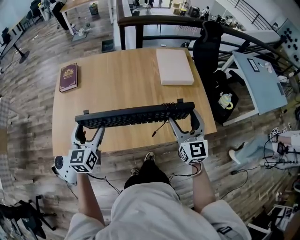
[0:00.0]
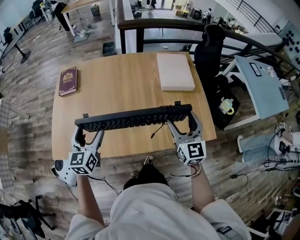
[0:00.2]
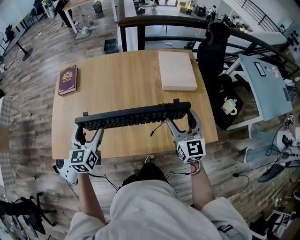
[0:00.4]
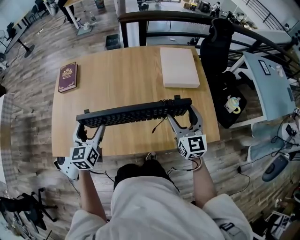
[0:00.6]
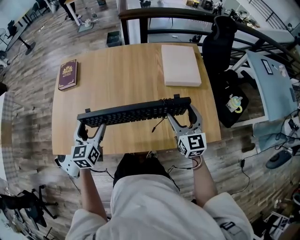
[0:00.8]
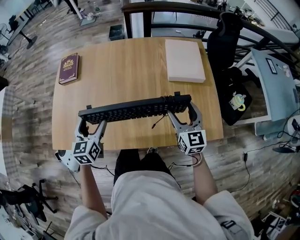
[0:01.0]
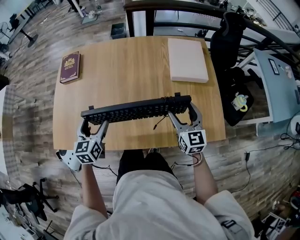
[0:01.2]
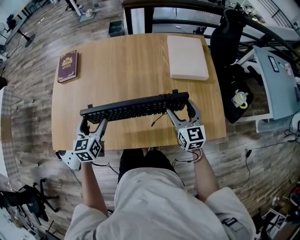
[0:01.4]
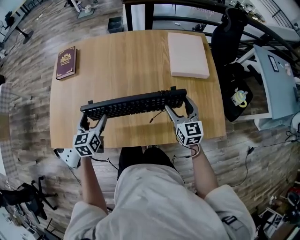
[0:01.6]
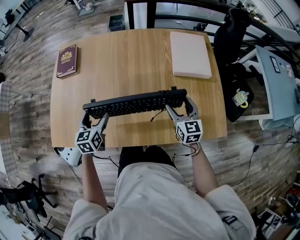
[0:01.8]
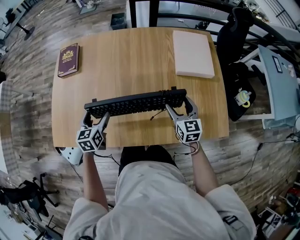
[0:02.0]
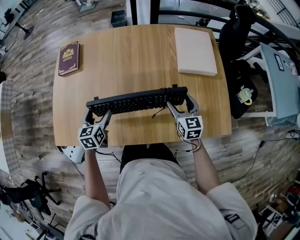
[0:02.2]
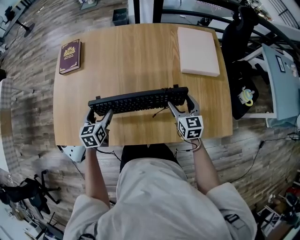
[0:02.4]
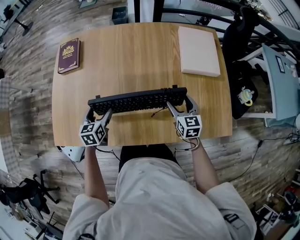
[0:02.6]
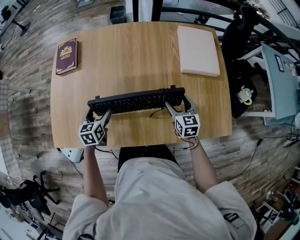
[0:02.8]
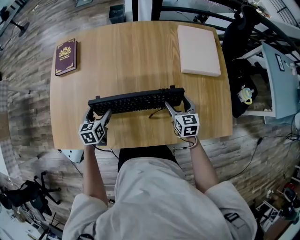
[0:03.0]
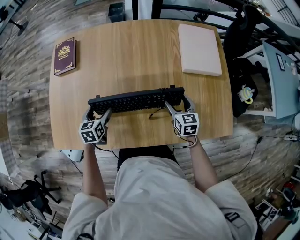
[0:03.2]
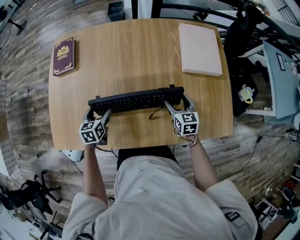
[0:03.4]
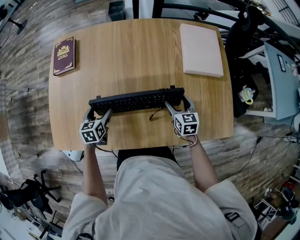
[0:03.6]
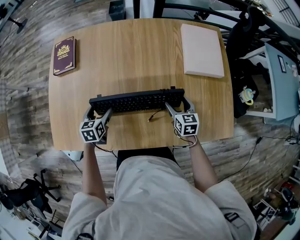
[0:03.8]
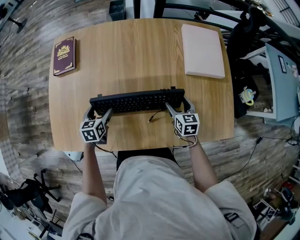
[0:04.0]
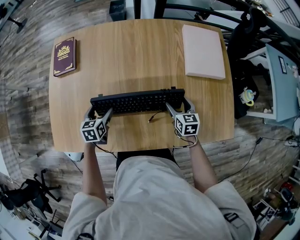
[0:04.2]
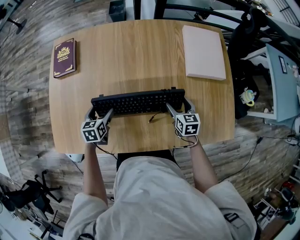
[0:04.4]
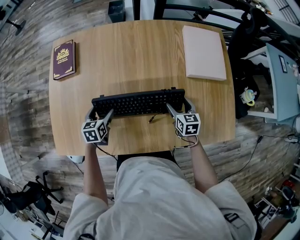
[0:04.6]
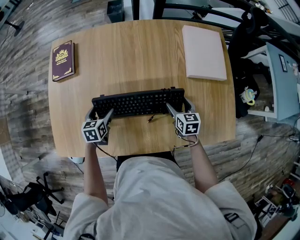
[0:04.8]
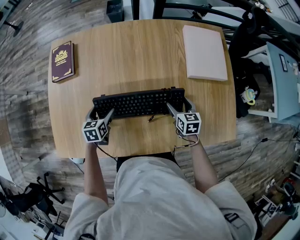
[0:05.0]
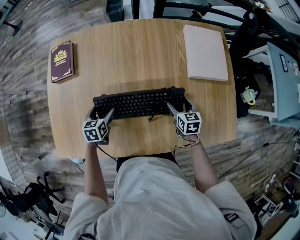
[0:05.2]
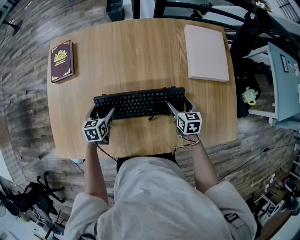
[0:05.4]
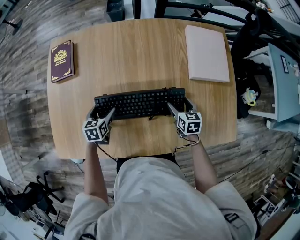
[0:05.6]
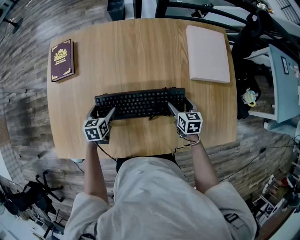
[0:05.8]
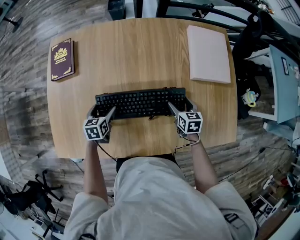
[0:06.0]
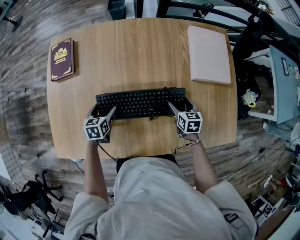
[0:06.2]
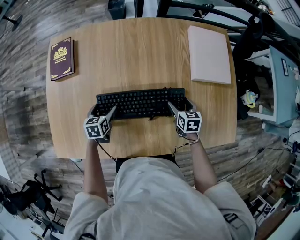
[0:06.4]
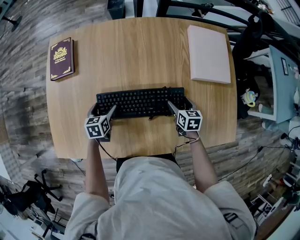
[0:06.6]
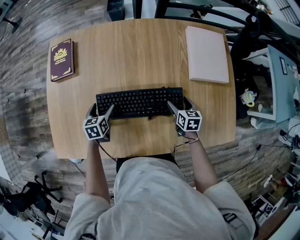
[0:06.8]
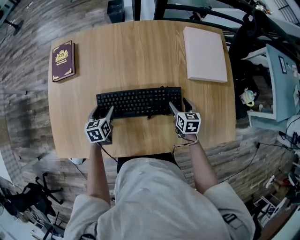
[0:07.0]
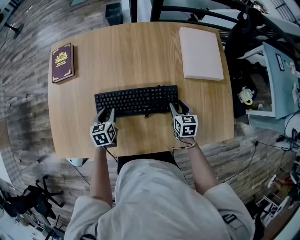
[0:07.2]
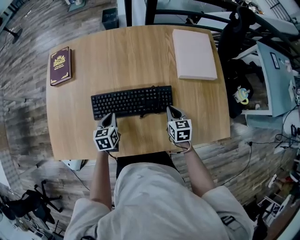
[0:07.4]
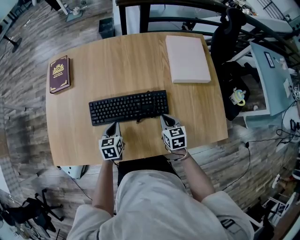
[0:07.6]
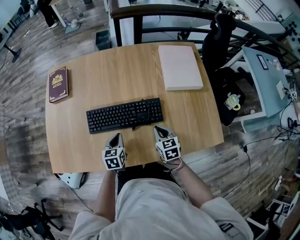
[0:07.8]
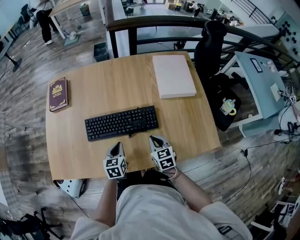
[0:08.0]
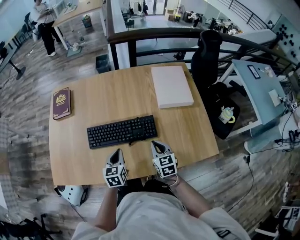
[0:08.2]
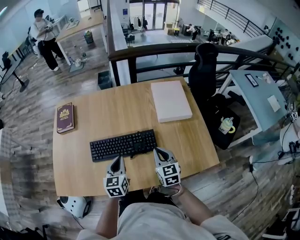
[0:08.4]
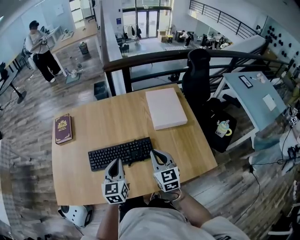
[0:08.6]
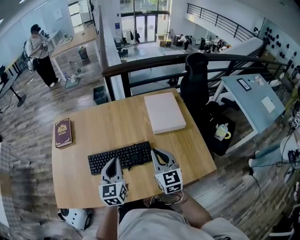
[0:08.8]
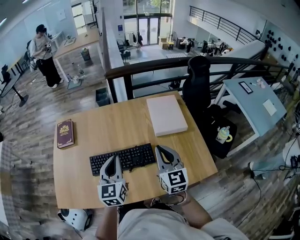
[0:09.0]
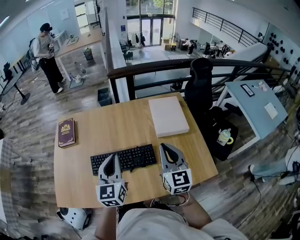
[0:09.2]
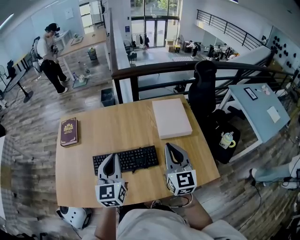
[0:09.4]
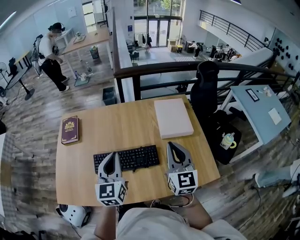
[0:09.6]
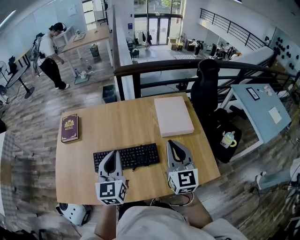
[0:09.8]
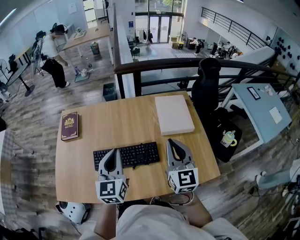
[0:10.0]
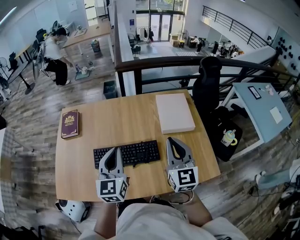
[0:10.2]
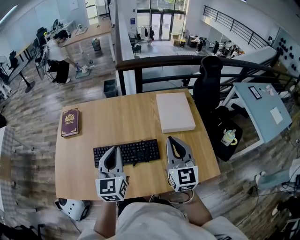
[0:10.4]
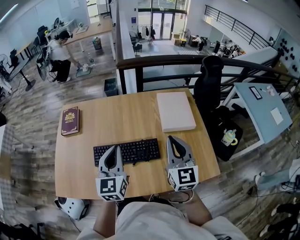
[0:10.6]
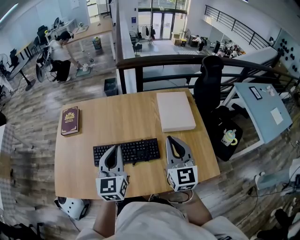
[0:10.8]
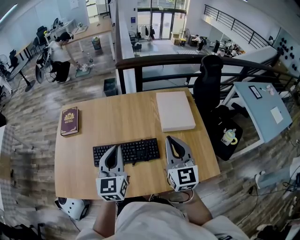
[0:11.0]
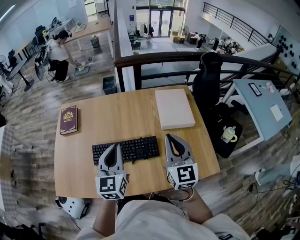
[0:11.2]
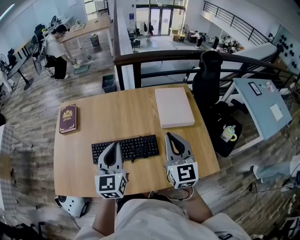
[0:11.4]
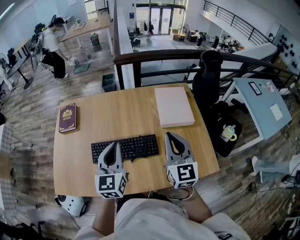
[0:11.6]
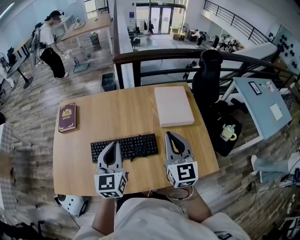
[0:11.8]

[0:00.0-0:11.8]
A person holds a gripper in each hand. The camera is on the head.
0:00.0 to 0:01.4: The two grippers go about 15 cm downward and forward.
0:01.4 to 0:03.0: The two grippers go roughly 10 cm downward.
0:03.0 to 0:04.4: The grippers stay close to where they were, moving slightly.
0:04.4 to 0:06.0: The grippers stay close to where they were, moving slightly.
0:06.0 to 0:07.4: The right gripper shifts by some 5 cm, and closes up; the left gripper is displaced to the right by approximately 5 cm, and closes up.
0:07.4 to 0:08.8: The left gripper goes some 25 cm upward and to the right, and tilts its fingers some 30 degrees upward. Meanwhile the right gripper travels upward by about 25 cm, and points its fingers approximately 30 degrees further upward.
0:08.8 to 0:10.4: Both grippers move upward, roughly 10 cm.
0:10.4 to 0:11.8: Neither gripper changes place.

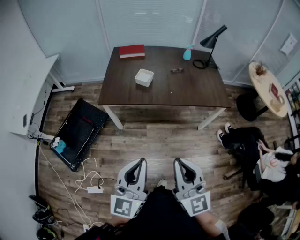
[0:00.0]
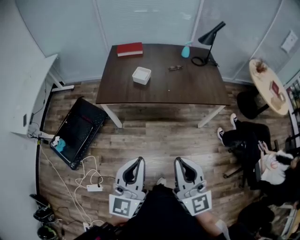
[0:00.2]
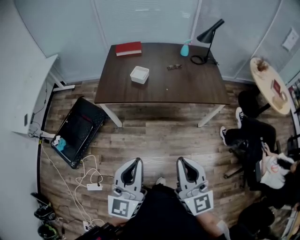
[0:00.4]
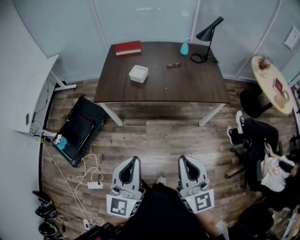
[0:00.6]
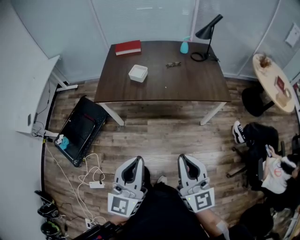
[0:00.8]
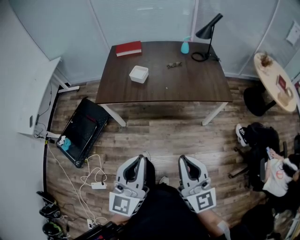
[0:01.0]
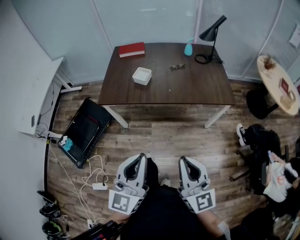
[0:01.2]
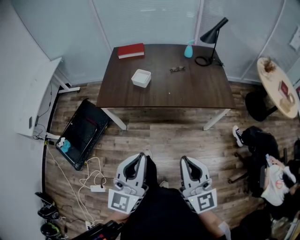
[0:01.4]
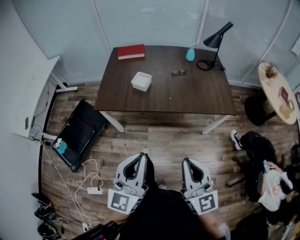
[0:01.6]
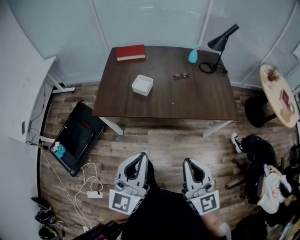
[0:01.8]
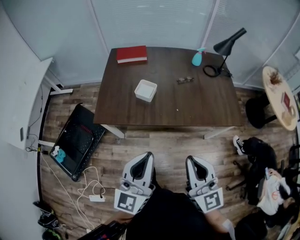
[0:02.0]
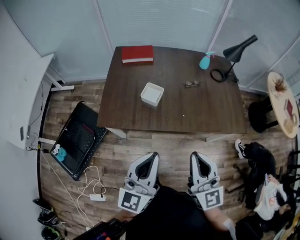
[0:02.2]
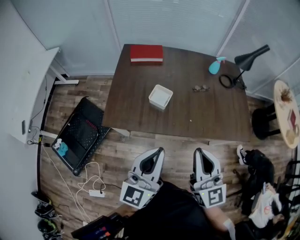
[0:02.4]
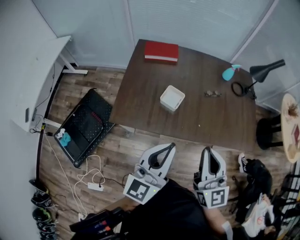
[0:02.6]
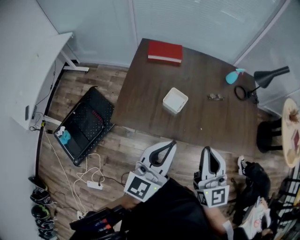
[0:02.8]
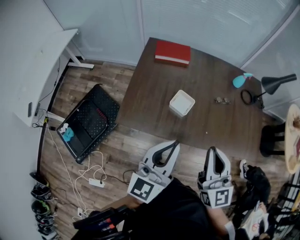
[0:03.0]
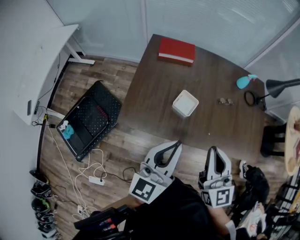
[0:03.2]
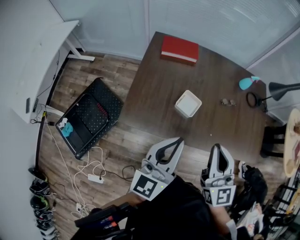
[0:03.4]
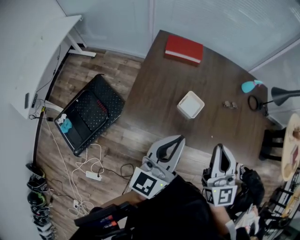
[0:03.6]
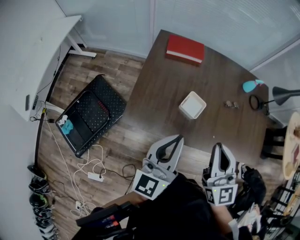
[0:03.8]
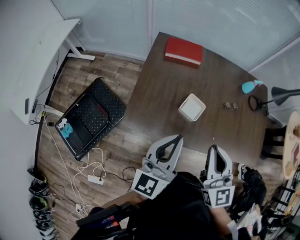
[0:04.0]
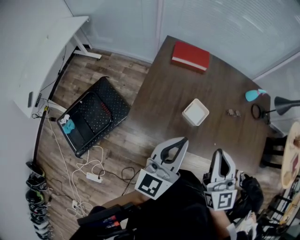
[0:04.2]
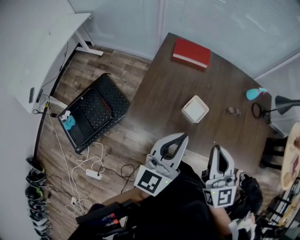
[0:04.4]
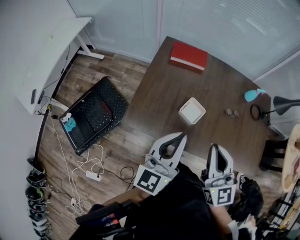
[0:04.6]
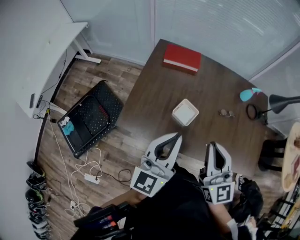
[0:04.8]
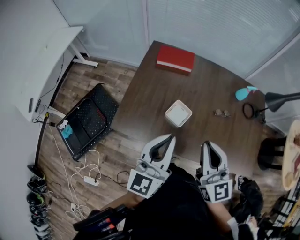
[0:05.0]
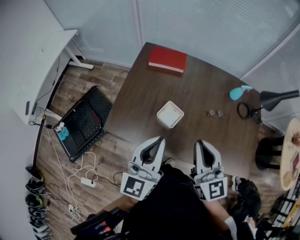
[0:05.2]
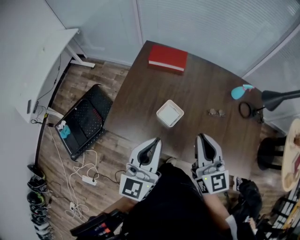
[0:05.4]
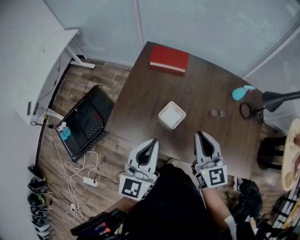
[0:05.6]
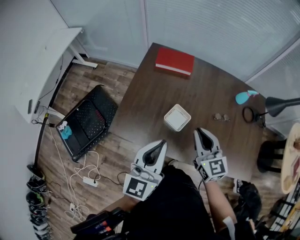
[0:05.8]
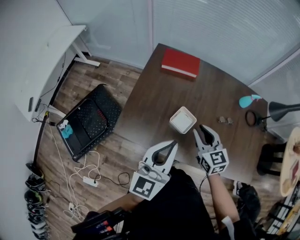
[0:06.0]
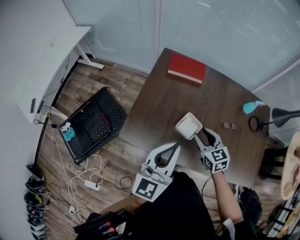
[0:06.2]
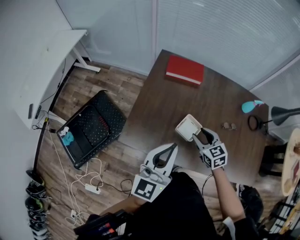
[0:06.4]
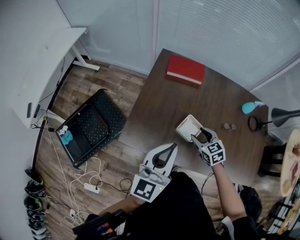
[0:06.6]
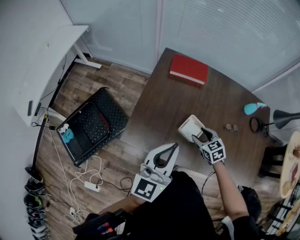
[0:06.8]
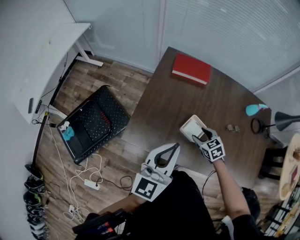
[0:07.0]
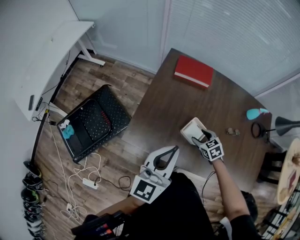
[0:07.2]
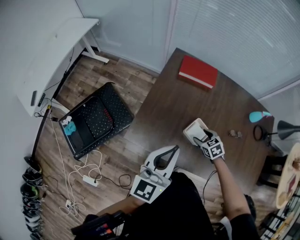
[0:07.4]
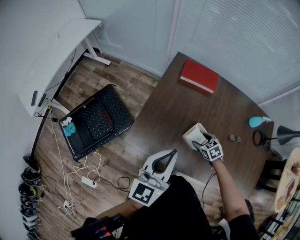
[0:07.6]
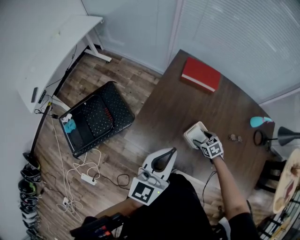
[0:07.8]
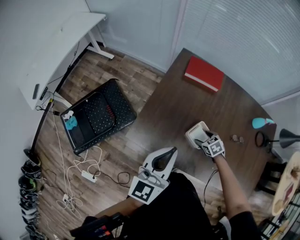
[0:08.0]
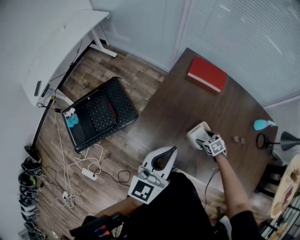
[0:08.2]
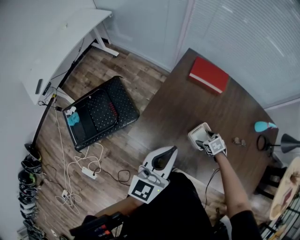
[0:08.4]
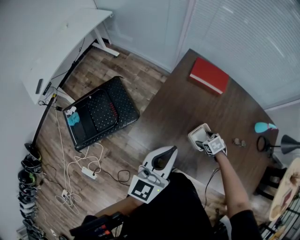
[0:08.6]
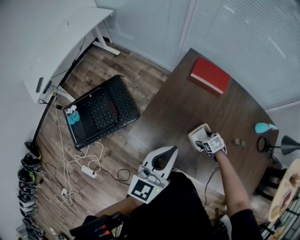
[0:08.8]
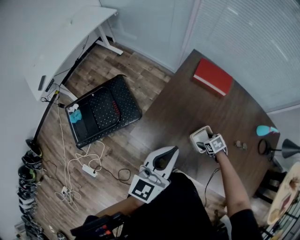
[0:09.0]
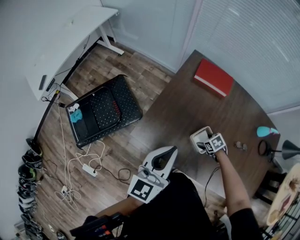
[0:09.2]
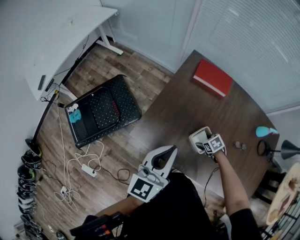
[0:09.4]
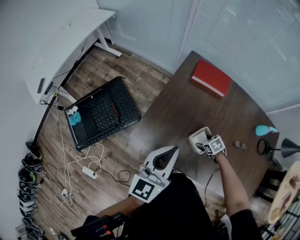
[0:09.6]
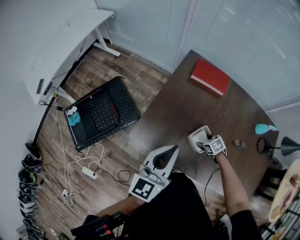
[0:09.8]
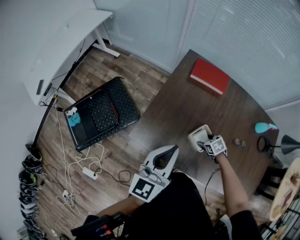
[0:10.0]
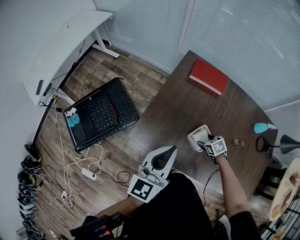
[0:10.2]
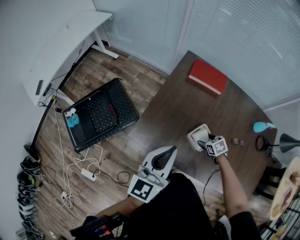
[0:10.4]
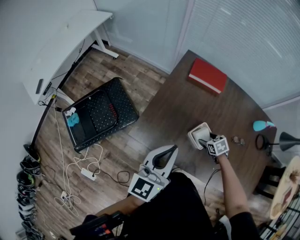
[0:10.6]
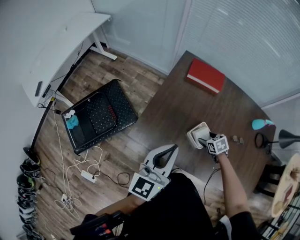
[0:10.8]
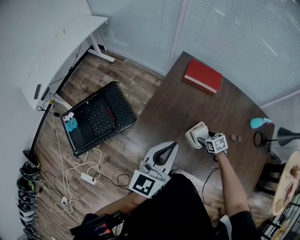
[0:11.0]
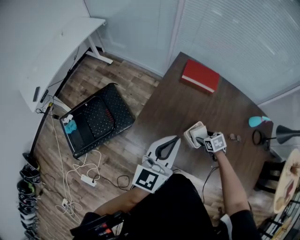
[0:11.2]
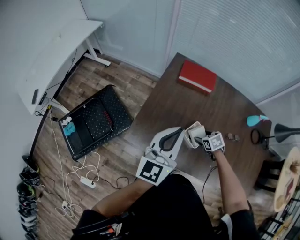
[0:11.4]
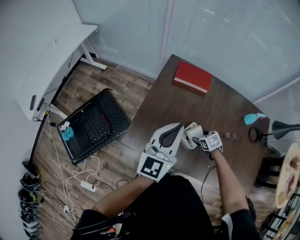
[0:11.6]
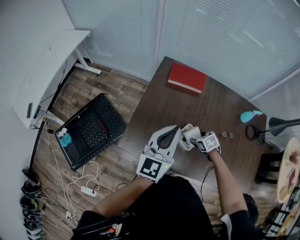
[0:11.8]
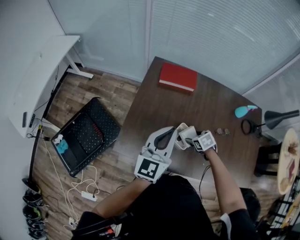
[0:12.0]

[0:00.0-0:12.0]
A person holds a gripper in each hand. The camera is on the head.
0:00.0 to 0:01.6: The left gripper is displaced forward and to the right by about 10 cm. Meanwhile the right gripper goes some 15 cm to the right and forward.
0:01.6 to 0:03.0: Both grippers travel together forward, some 35 cm.
0:03.0 to 0:04.4: The right gripper shifts roughly 10 cm to the left and forward, while the left gripper goes roughly 10 cm forward and to the left.
0:04.4 to 0:06.0: The left gripper goes about 5 cm to the right; the right gripper shifts some 20 cm downward and forward, and turns by some 20 degrees.
0:06.0 to 0:07.6: The right gripper heads downward, covering some 20 cm, points its fingers some 40 degrees further downward, and opens its fingers. The left gripper heads to the left, covering about 10 cm.
0:07.6 to 0:09.0: The right gripper shifts some 5 cm downward.
0:09.0 to 0:10.4: The grippers stay close to where they were, moving slightly.
0:10.4 to 0:12.0: The left gripper shifts some 10 cm to the right and forward.
